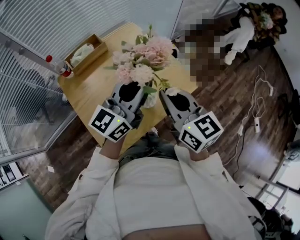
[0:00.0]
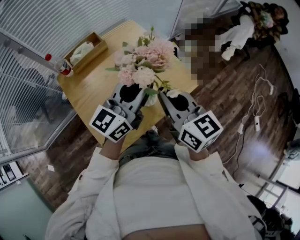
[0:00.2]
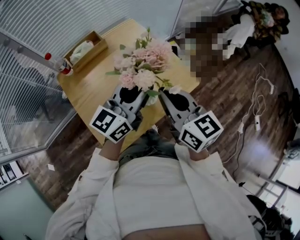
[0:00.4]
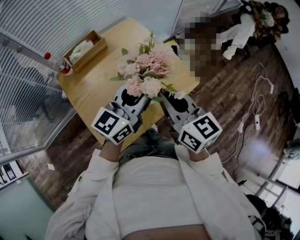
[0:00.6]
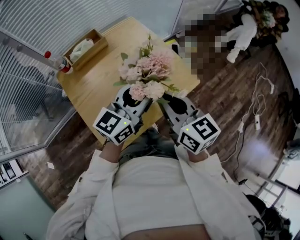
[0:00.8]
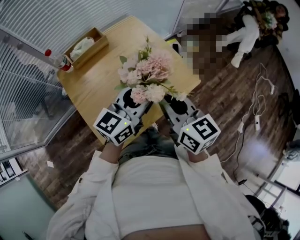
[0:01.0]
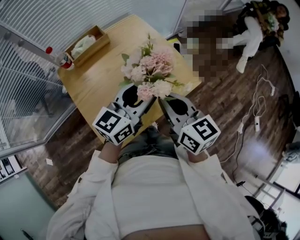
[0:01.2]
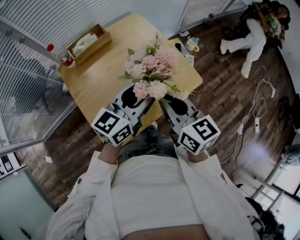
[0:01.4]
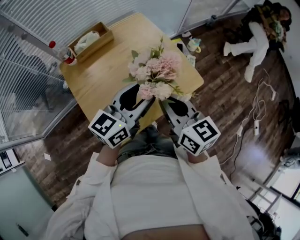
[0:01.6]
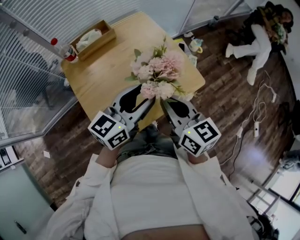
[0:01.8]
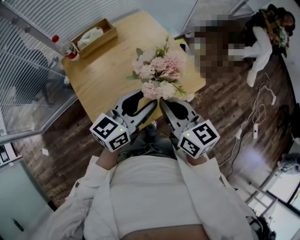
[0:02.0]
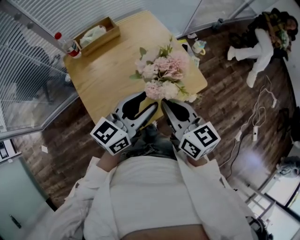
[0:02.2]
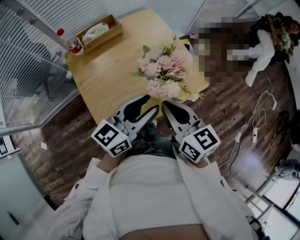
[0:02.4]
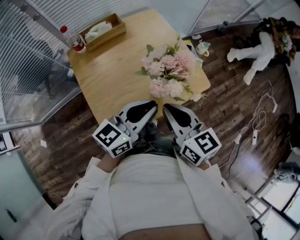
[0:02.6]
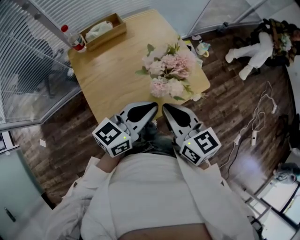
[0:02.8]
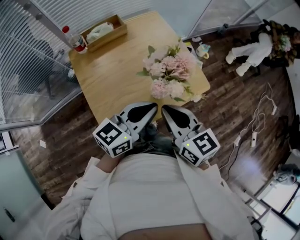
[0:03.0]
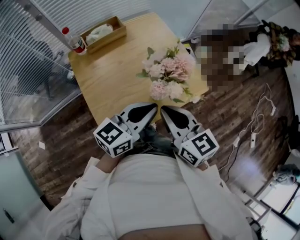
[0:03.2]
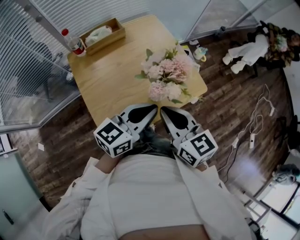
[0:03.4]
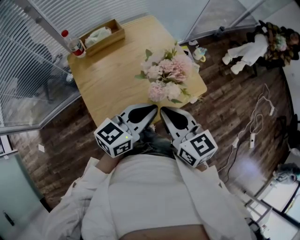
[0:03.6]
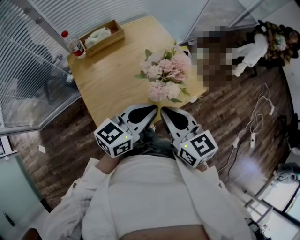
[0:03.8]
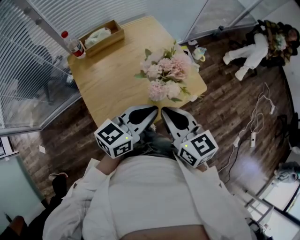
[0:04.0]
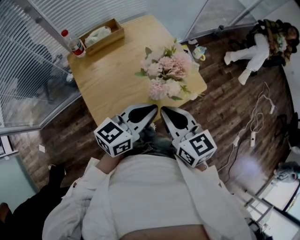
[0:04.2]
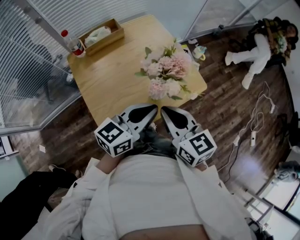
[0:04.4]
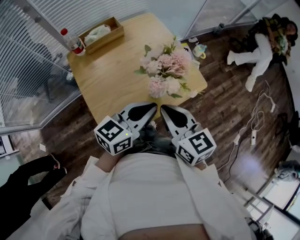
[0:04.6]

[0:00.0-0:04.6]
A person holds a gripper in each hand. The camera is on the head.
0:00.0 to 0:01.6: The right gripper moves about 5 cm; the left gripper goes some 5 cm downward, and opens its fingers.
0:01.6 to 0:03.0: The left gripper goes about 5 cm backward, and closes.
0:03.0 to 0:04.6: Both grippers stay put.

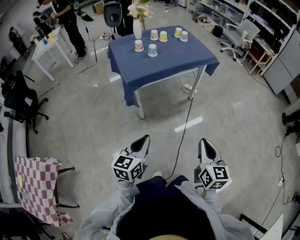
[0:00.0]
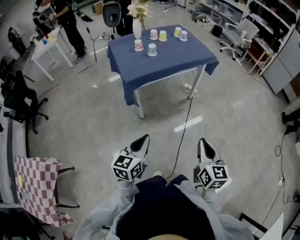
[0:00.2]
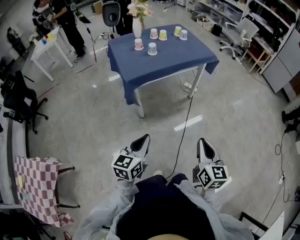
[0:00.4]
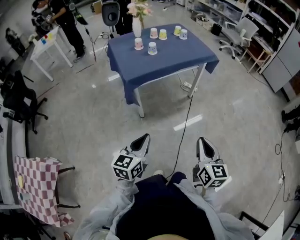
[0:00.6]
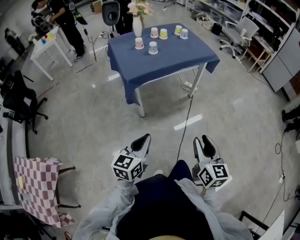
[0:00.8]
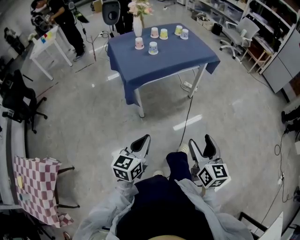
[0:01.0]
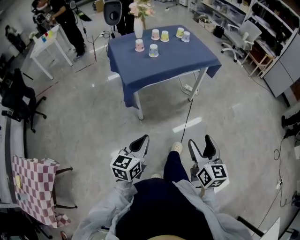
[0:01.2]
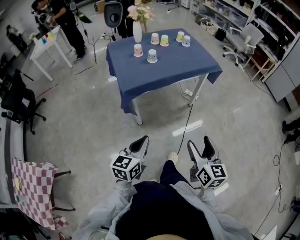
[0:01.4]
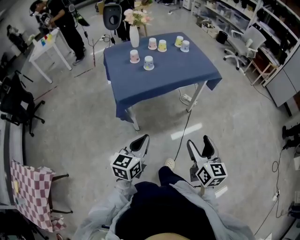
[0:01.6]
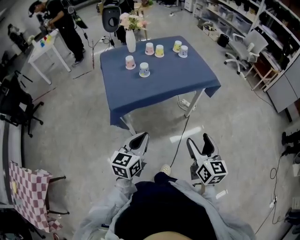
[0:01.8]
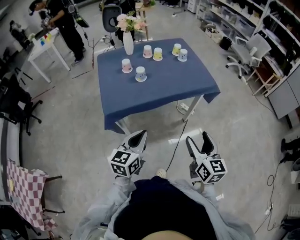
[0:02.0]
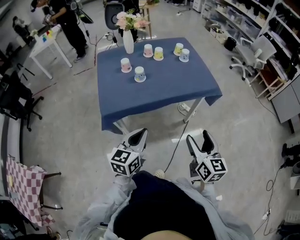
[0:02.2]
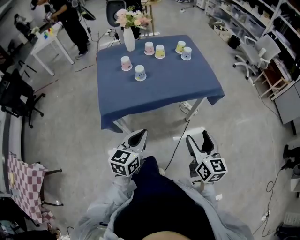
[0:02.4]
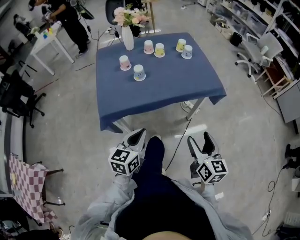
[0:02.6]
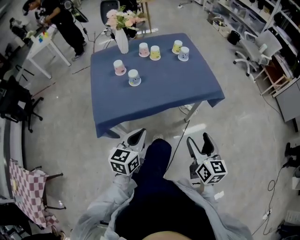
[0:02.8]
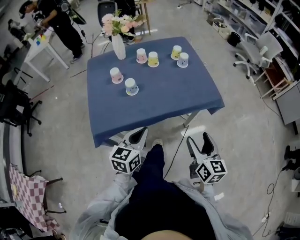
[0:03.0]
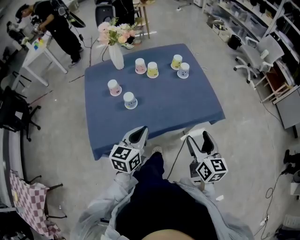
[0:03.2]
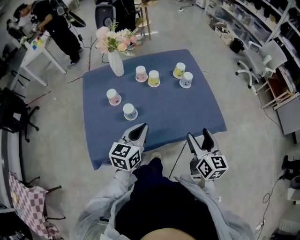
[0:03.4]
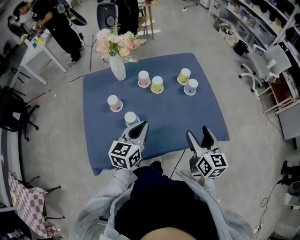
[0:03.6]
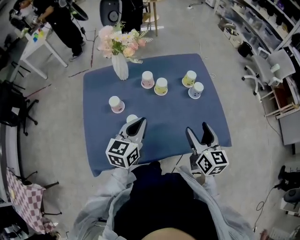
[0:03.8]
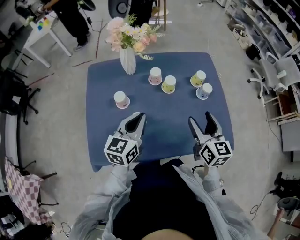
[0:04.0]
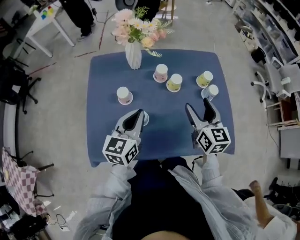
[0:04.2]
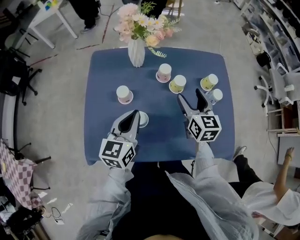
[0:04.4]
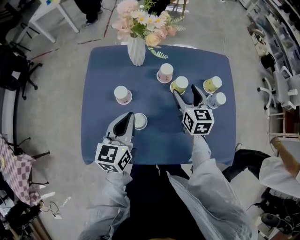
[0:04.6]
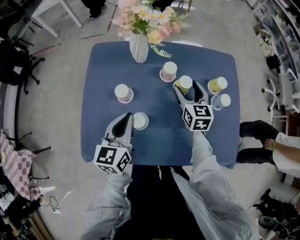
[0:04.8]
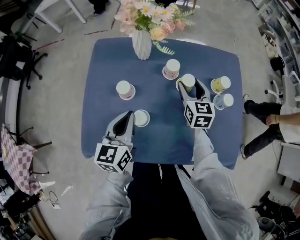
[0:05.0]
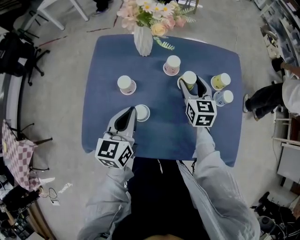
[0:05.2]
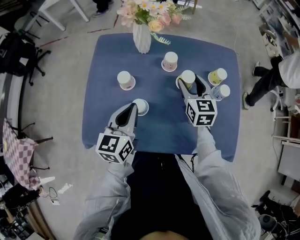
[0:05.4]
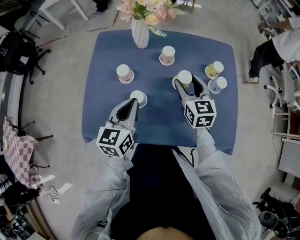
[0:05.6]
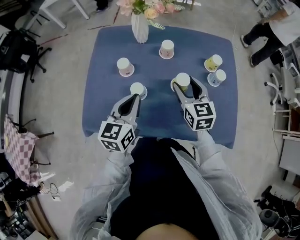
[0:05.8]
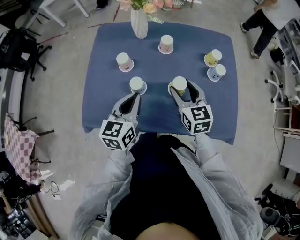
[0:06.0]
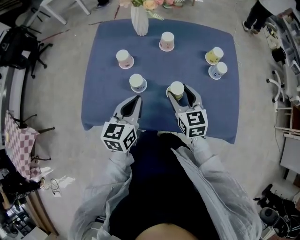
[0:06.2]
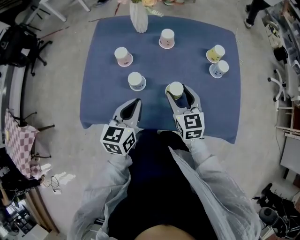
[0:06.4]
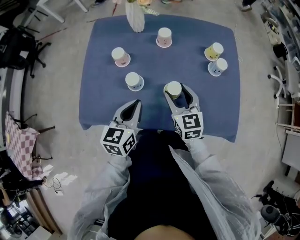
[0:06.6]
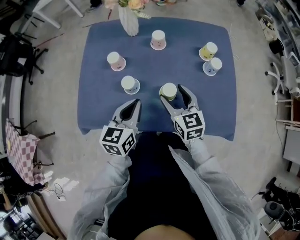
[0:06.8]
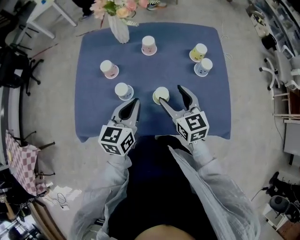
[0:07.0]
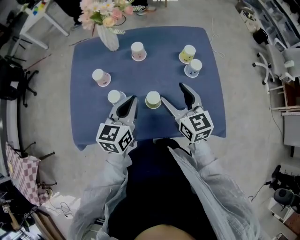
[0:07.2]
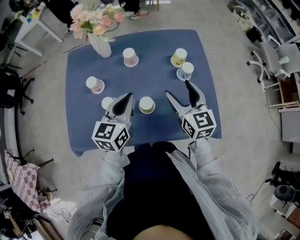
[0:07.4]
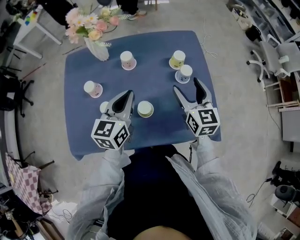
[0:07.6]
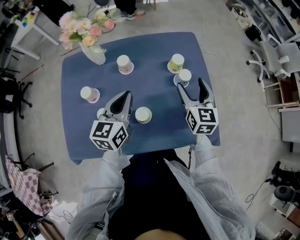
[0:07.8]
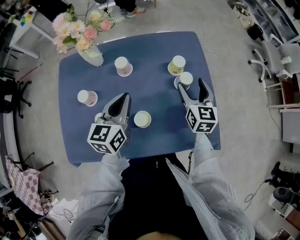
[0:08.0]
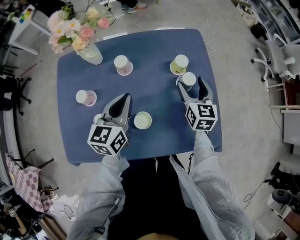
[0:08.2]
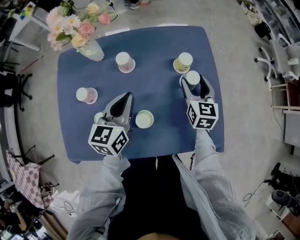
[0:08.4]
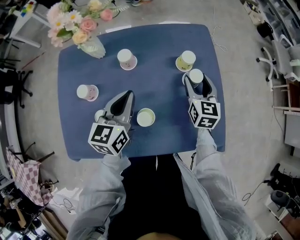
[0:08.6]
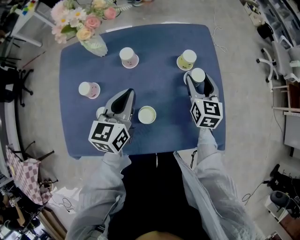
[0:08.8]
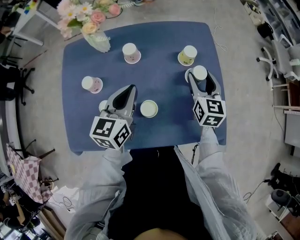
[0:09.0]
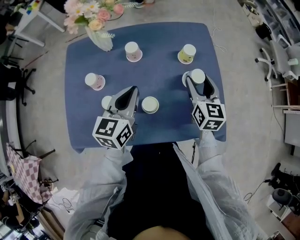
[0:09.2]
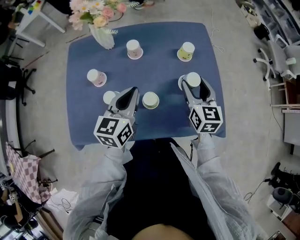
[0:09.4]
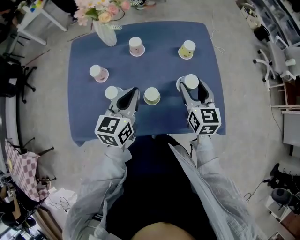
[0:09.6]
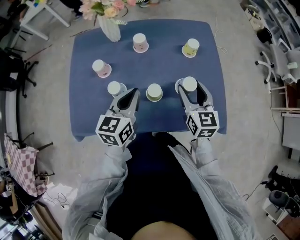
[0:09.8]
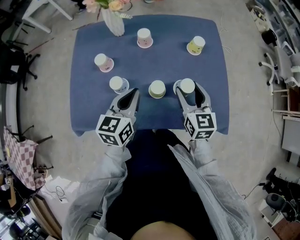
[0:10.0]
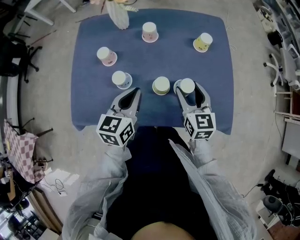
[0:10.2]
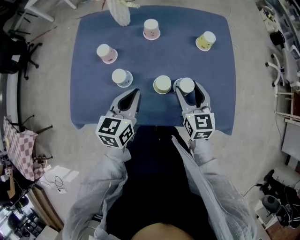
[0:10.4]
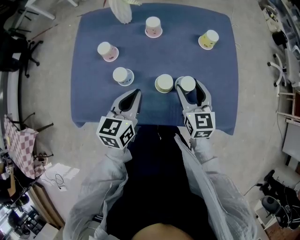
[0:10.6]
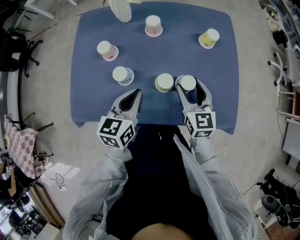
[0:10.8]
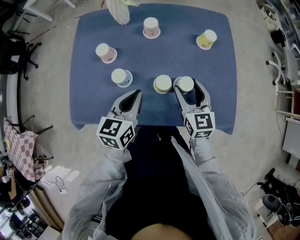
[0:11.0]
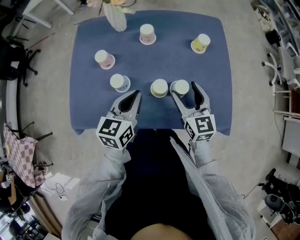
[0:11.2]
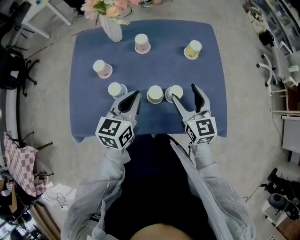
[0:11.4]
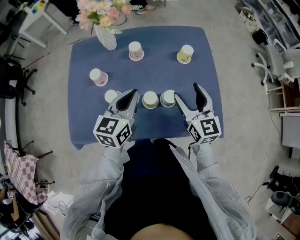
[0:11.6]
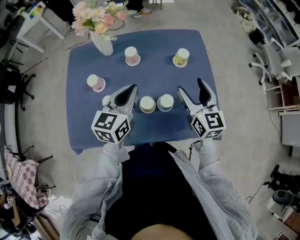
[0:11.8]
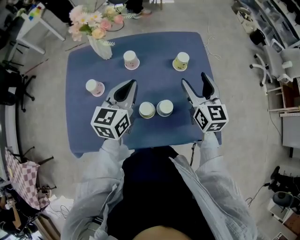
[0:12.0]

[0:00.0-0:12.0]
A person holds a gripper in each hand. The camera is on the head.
0:00.0 to 0:01.6: Both grippers move forward, about 15 cm. The right gripper opens its fingers.
0:01.6 to 0:03.0: Both grippers move forward, approximately 30 cm.
0:03.0 to 0:04.4: The left gripper shifts roughly 30 cm forward and to the left, and swivels some 20 degrees, while the right gripper moves forward, about 40 cm, and swivels roughly 20 degrees.
0:04.4 to 0:06.0: Both grippers move backward, some 10 cm.
0:06.0 to 0:07.6: The right gripper heads to the right, covering some 15 cm. Meanwhile the left gripper travels to the right and forward by roughly 15 cm.
0:07.6 to 0:09.0: The right gripper is displaced forward and downward by roughly 10 cm.
0:09.0 to 0:10.4: The left gripper is displaced backward by roughly 10 cm; the right gripper heads backward and to the left, covering approximately 15 cm.
0:10.4 to 0:12.0: The right gripper goes some 15 cm upward, forward and to the right. The left gripper goes approximately 15 cm forward, upward and to the right.

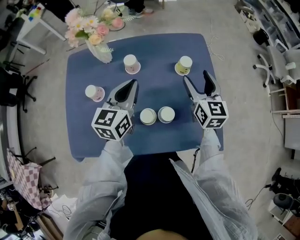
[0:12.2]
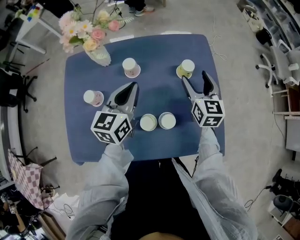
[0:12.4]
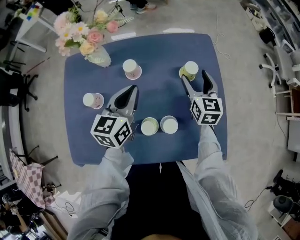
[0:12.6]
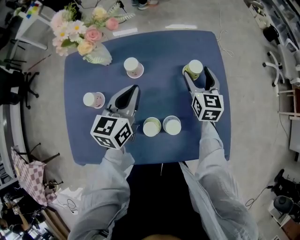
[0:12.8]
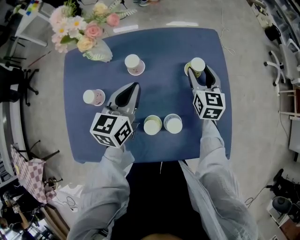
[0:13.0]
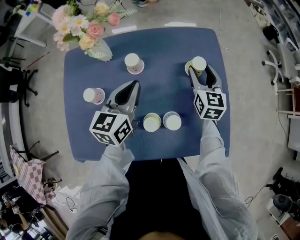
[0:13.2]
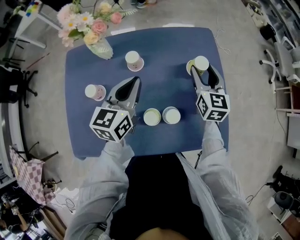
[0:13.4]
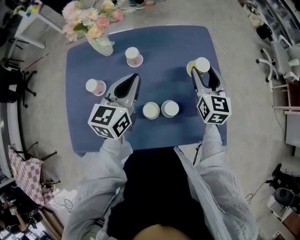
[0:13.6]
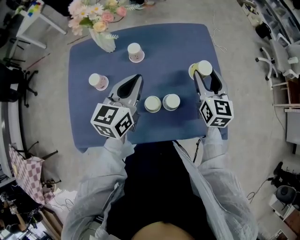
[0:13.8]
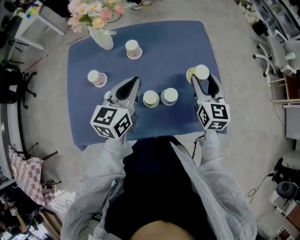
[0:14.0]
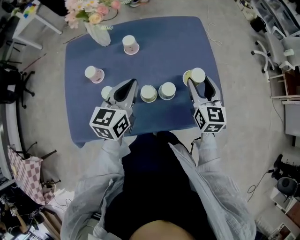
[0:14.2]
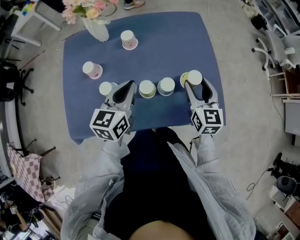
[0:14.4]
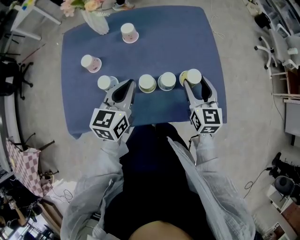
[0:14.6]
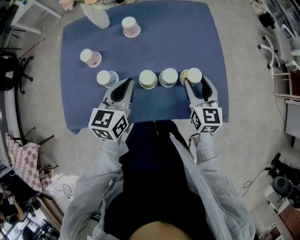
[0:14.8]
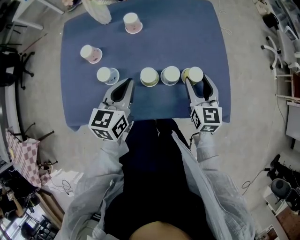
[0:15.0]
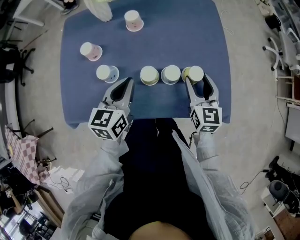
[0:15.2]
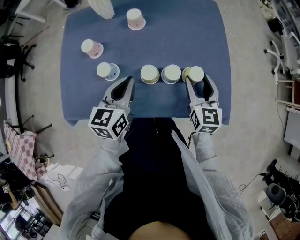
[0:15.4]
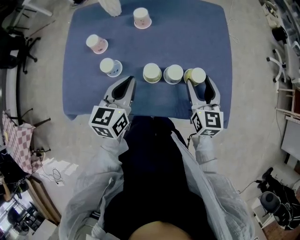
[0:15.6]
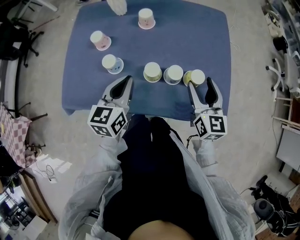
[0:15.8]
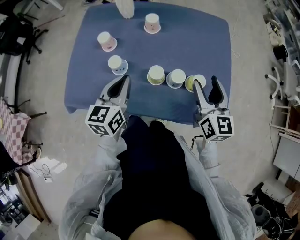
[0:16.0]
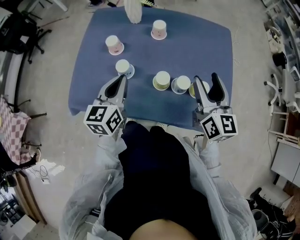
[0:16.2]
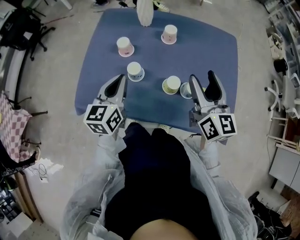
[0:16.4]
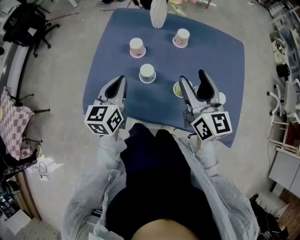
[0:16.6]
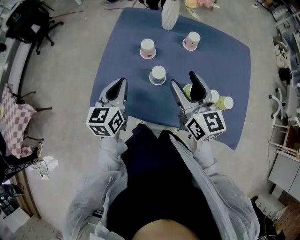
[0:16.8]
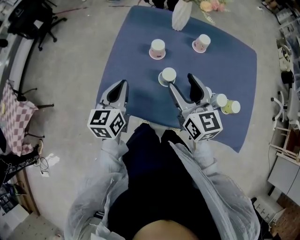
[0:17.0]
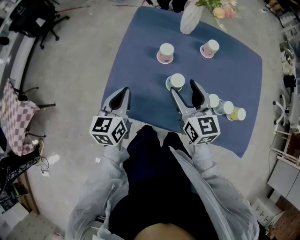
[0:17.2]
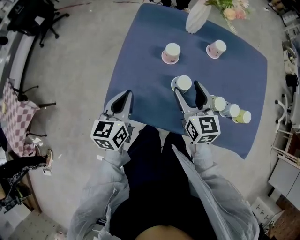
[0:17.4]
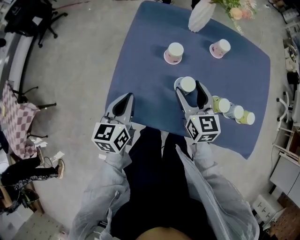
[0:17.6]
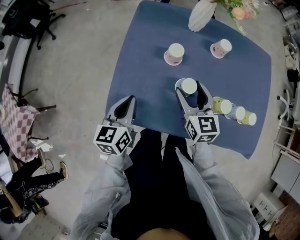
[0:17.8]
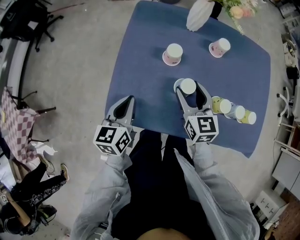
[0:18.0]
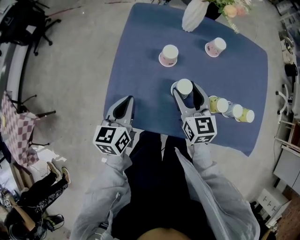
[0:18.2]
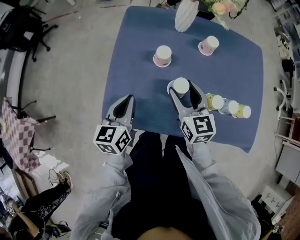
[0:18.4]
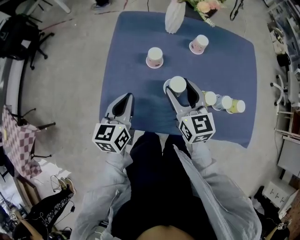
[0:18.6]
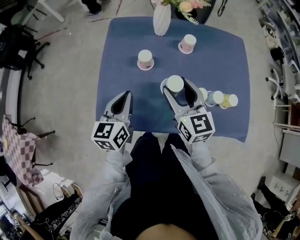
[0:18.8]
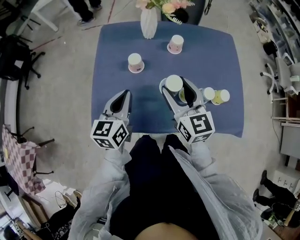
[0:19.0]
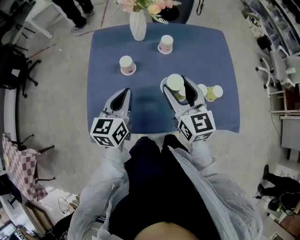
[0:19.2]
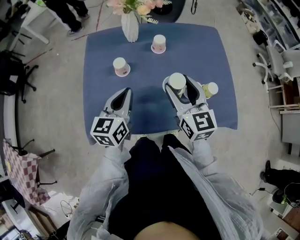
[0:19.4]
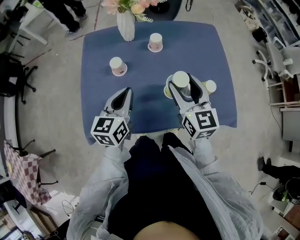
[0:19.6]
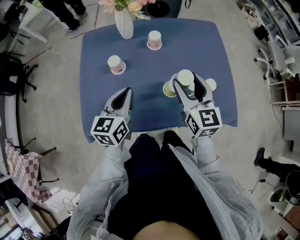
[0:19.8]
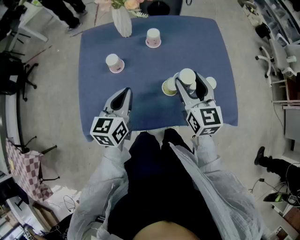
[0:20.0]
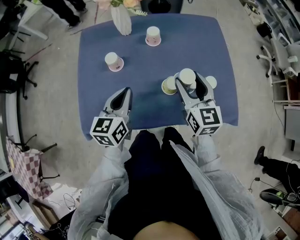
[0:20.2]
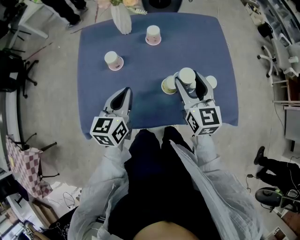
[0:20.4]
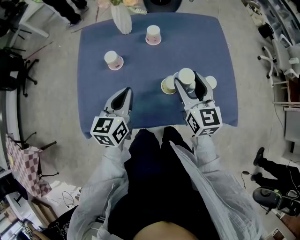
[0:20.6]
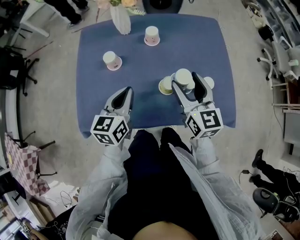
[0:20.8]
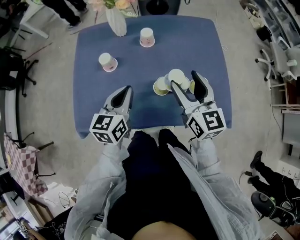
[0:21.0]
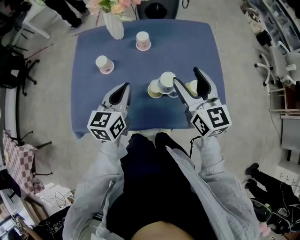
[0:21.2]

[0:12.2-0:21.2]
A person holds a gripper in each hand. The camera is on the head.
0:12.2 to 0:13.8: The right gripper reaches approximately 10 cm forward, then returns.
0:13.8 to 0:15.2: Both grippers travel together backward and downward, some 15 cm.
0:15.2 to 0:16.6: The right gripper travels to the left and upward by some 25 cm, and changes its angle by some 30 degrees. Meanwhile the left gripper travels to the left by roughly 15 cm, and rotates approximately 20 degrees.
0:16.6 to 0:18.2: Both grippers travel together to the left and downward, about 20 cm.
0:18.2 to 0:19.8: The left gripper moves to the right, about 20 cm. Meanwhile the right gripper travels to the right and upward by some 20 cm.
0:19.8 to 0:21.2: Both grippers travel together to the right, roughly 5 cm.
